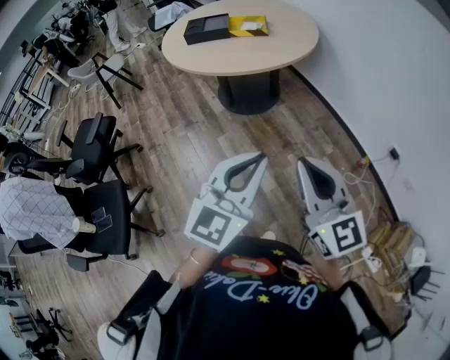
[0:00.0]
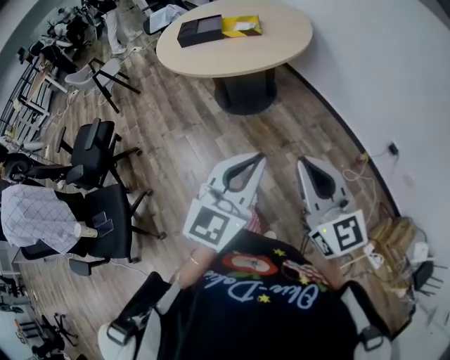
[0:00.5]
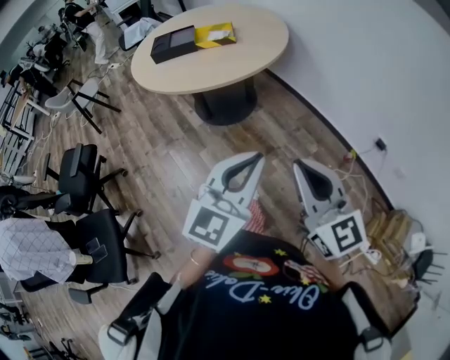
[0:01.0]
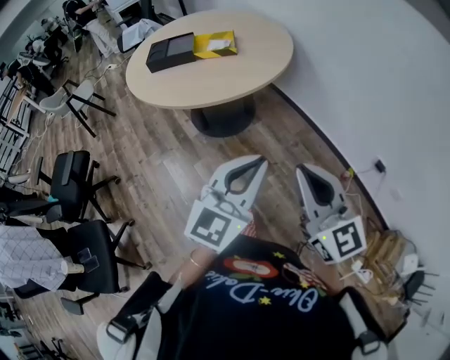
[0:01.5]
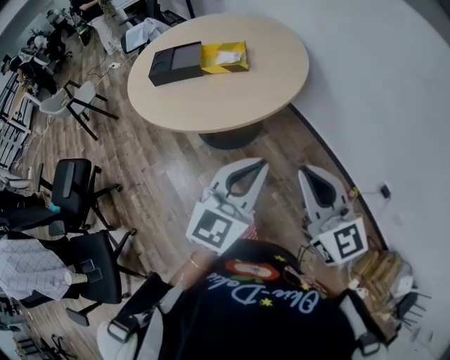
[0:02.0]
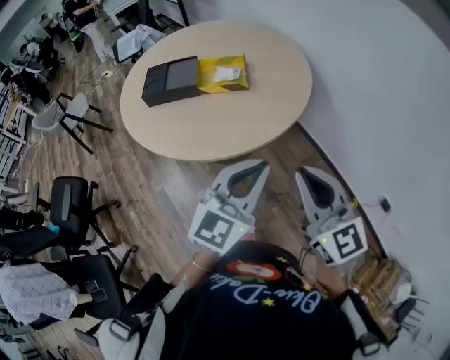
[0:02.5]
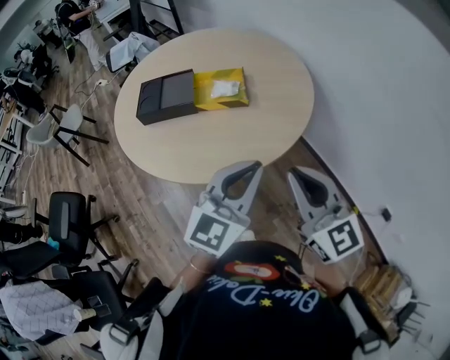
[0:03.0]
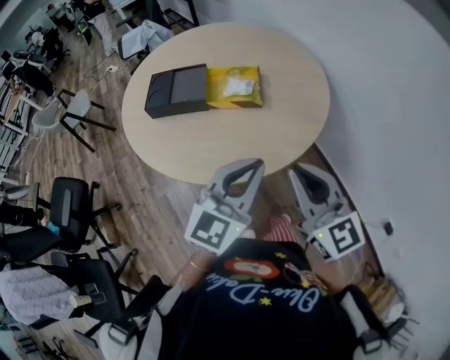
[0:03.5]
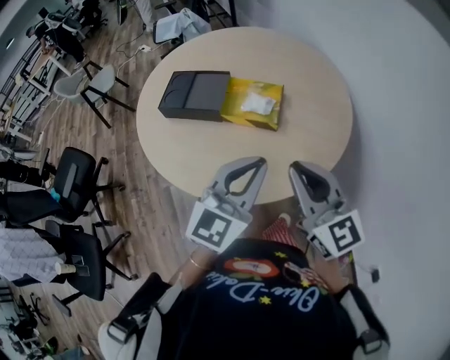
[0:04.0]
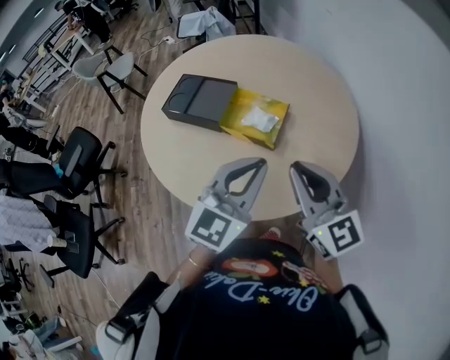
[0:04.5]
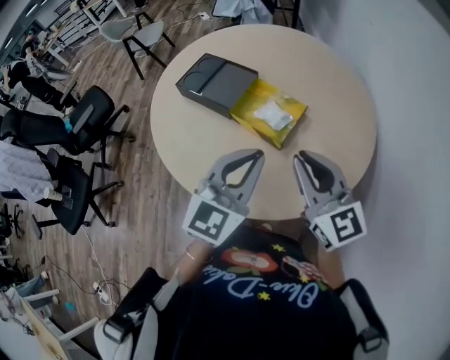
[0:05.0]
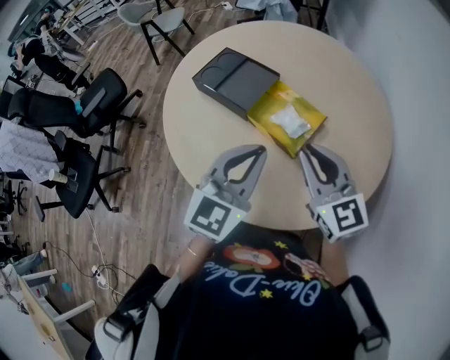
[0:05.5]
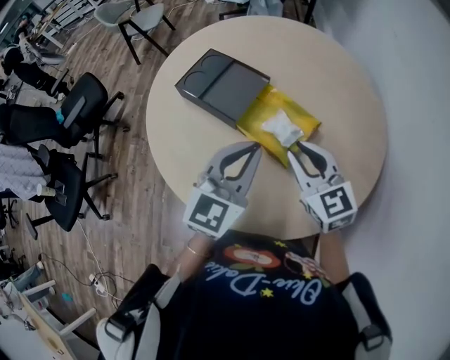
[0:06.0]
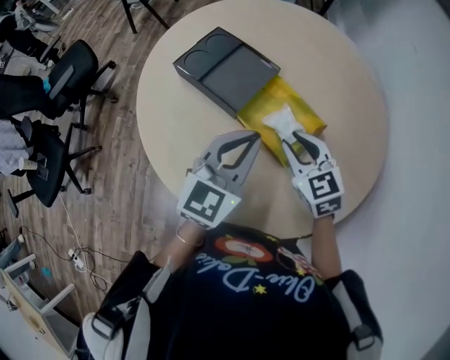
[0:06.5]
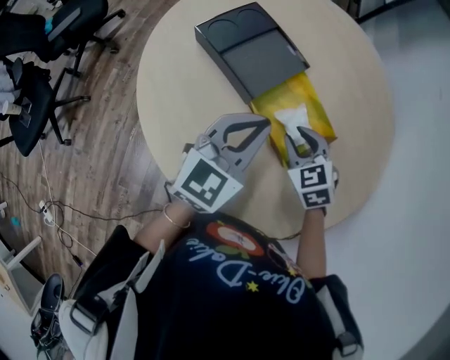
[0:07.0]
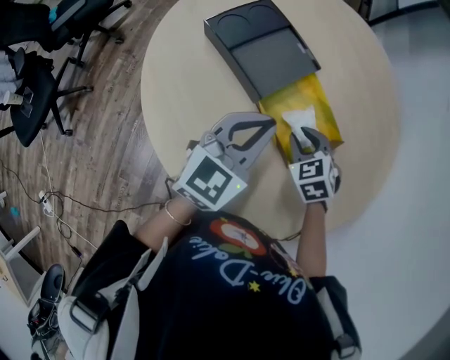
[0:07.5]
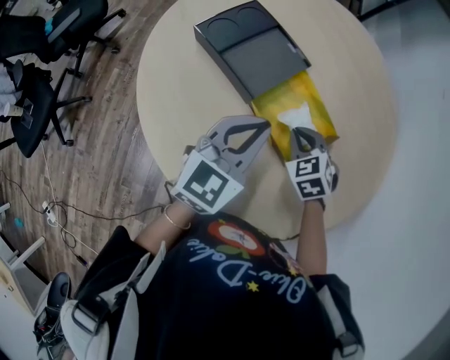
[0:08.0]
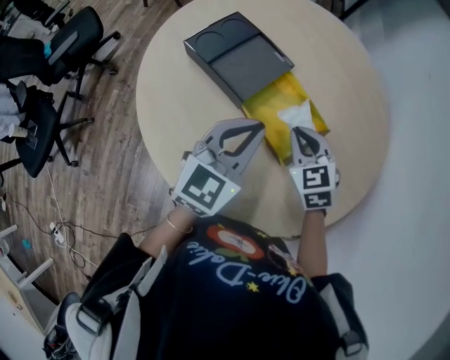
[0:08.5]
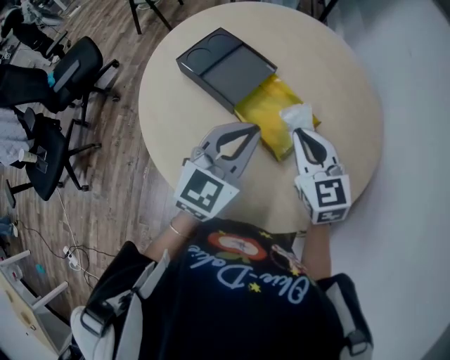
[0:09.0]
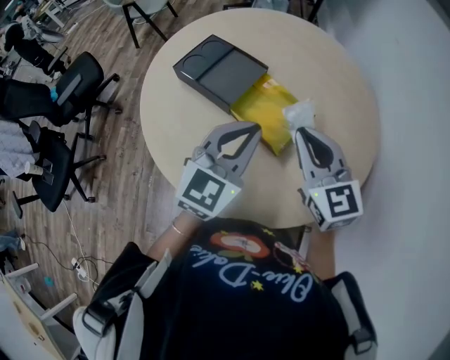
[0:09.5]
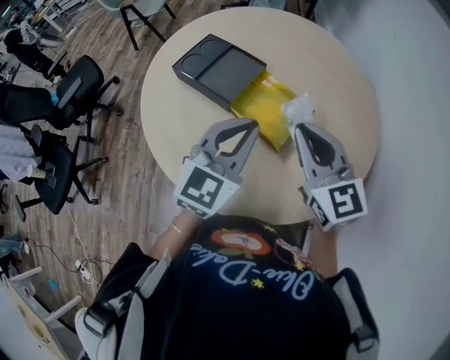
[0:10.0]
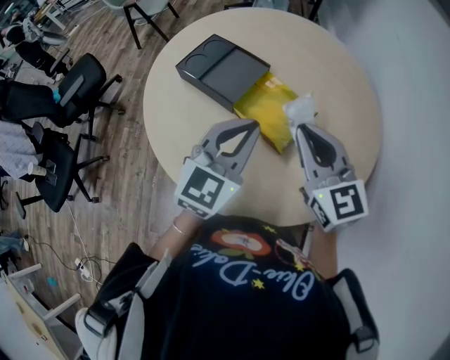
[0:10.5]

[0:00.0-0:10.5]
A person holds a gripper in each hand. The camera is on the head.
0:00.0 to 0:02.0: Both grippers move forward, roughly 25 cm.
0:02.0 to 0:04.0: The grippers both shift forward by approximately 30 cm.
0:04.0 to 0:06.5: The left gripper moves some 20 cm, and changes its angle by about 30 degrees. The right gripper ends up approximately 30 cm from where it was, and tilts its fingers roughly 40 degrees downward.
0:06.5 to 0:08.5: The right gripper goes downward and returns, roughly 10 cm each way.
0:08.5 to 0:10.5: The right gripper travels upward and backward by about 20 cm, and angles its fingers upward, by about 30 degrees, while the left gripper moves upward, about 5 cm.

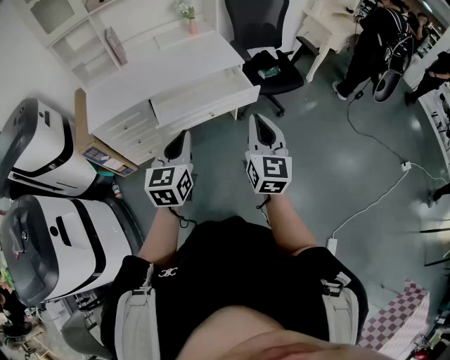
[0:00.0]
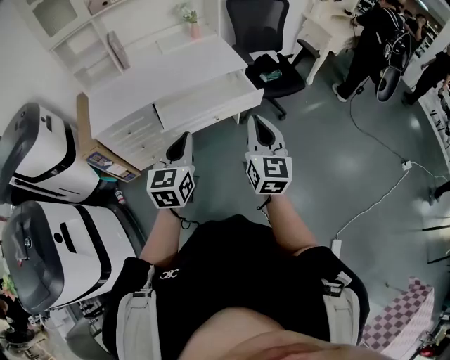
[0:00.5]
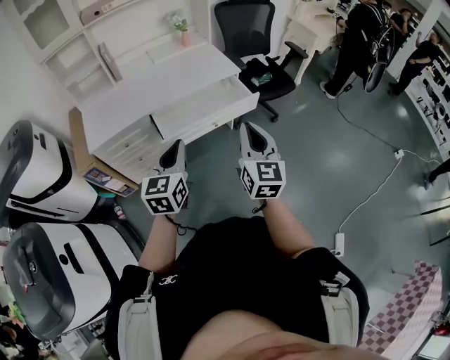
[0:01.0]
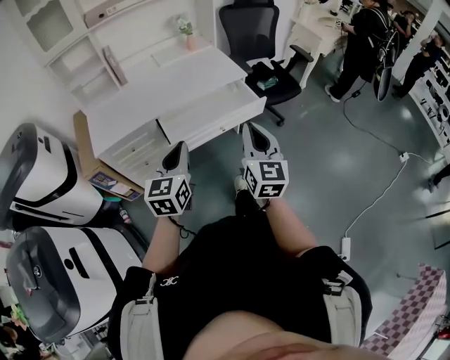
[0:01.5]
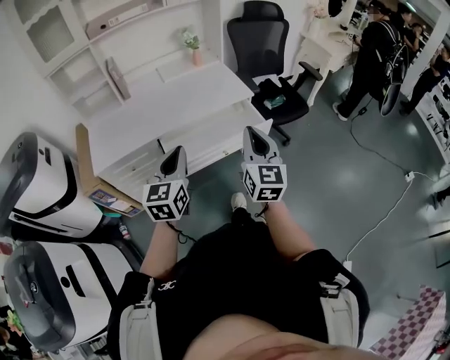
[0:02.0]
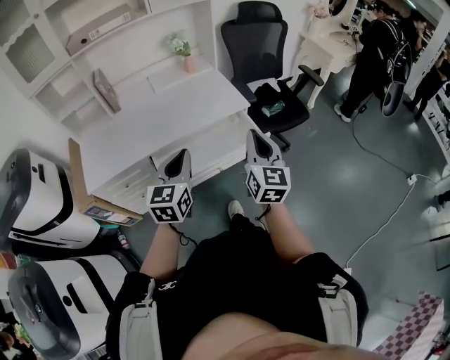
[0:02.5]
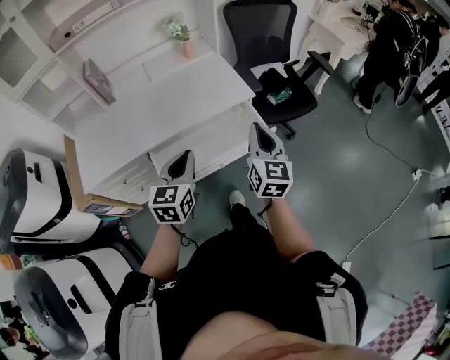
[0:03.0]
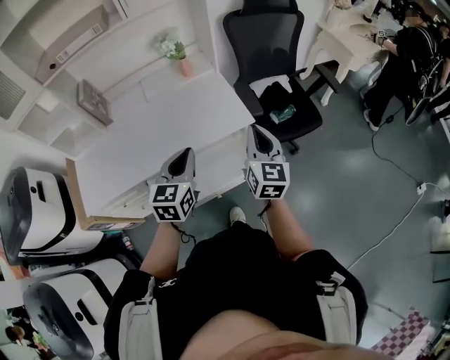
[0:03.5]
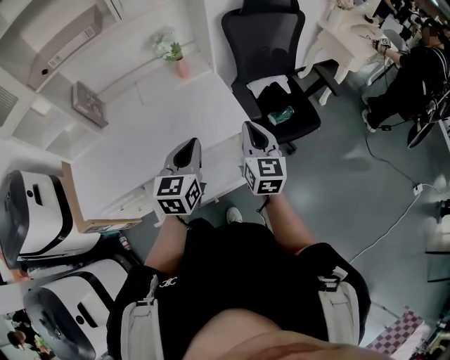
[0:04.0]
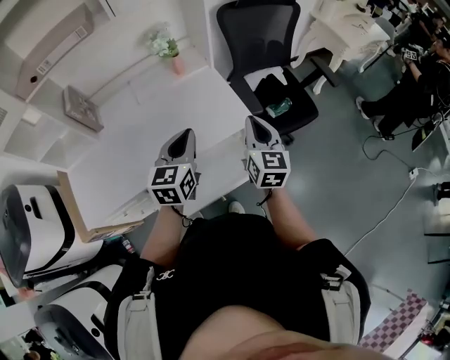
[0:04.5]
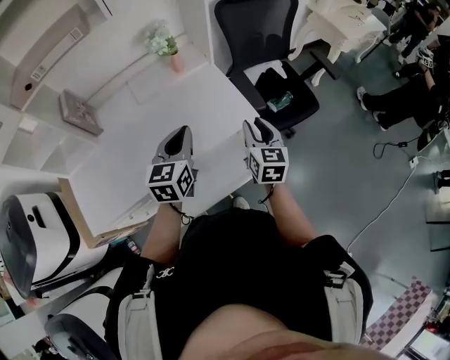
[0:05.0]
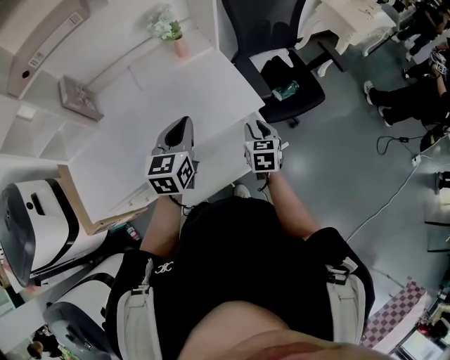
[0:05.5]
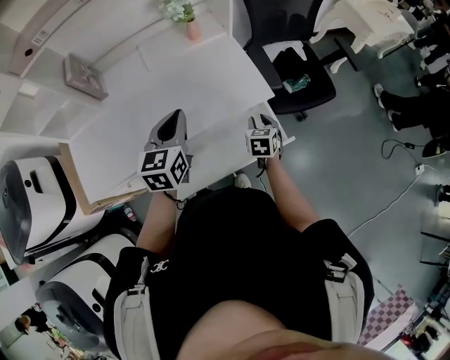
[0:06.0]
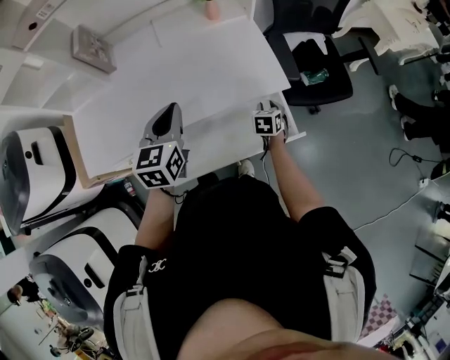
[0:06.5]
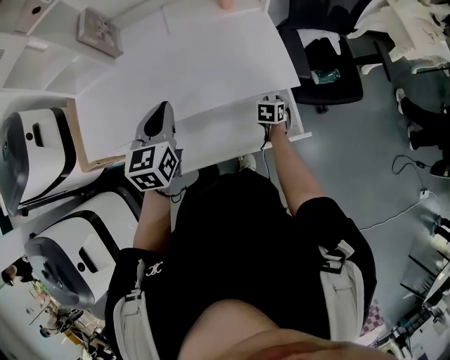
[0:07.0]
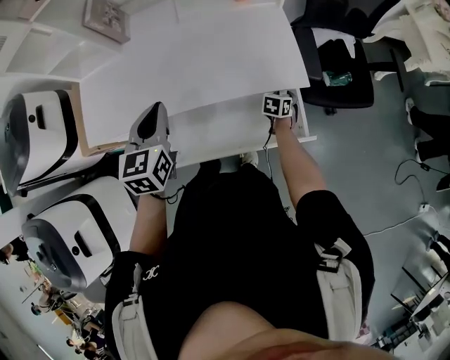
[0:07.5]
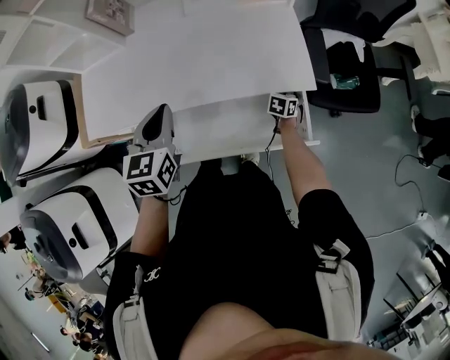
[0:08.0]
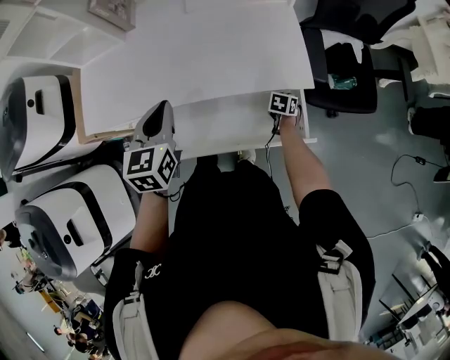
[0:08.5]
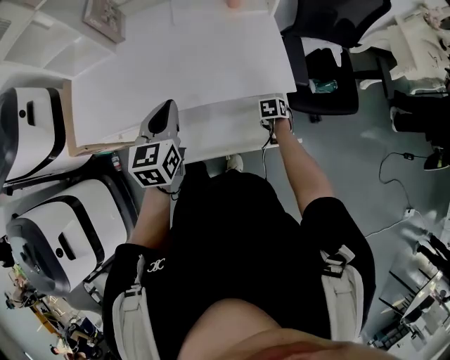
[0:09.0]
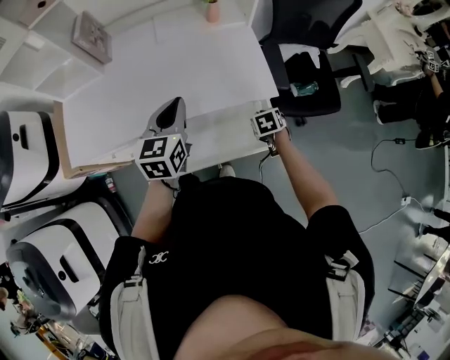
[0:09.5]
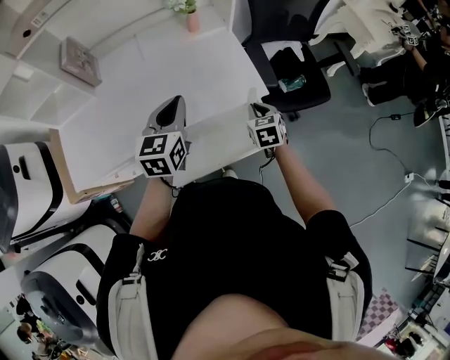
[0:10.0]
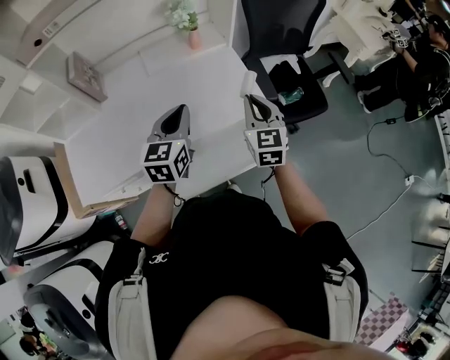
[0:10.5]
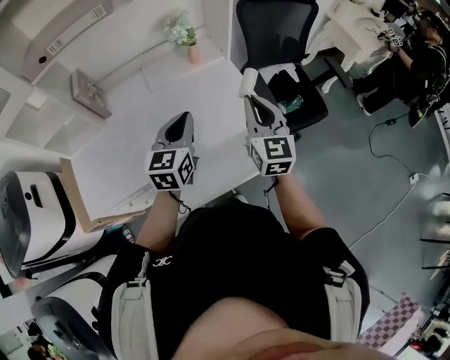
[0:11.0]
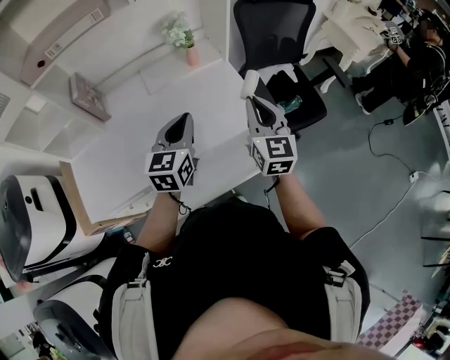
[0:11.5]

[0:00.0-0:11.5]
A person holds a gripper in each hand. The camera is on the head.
0:00.0 to 0:02.0: The grippers both shift forward and to the left by approximately 15 cm.
0:02.0 to 0:04.0: The two grippers go roughly 35 cm forward.
0:04.0 to 0:06.0: The left gripper is displaced to the left by some 10 cm; the right gripper goes approximately 25 cm downward, angles its fingers downward, by roughly 40 degrees, and opens.
0:06.0 to 0:07.5: The right gripper shifts roughly 20 cm downward and forward. The left gripper travels to the left by some 10 cm, and changes its angle by some 20 degrees.
0:07.5 to 0:09.5: The left gripper goes about 10 cm to the right. The right gripper heads upward and backward, covering about 10 cm, and swivels about 30 degrees.
0:09.5 to 0:11.5: The left gripper shifts approximately 5 cm upward, while the right gripper goes approximately 35 cm upward, and angles its fingers upward, by roughly 60 degrees.

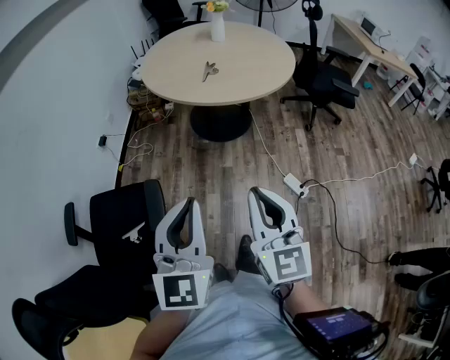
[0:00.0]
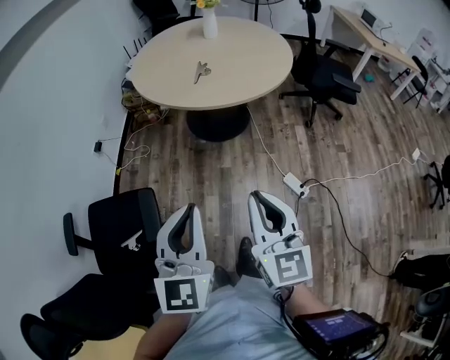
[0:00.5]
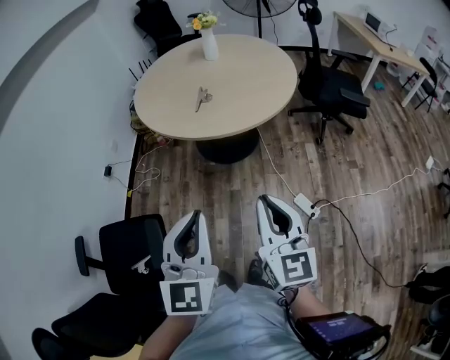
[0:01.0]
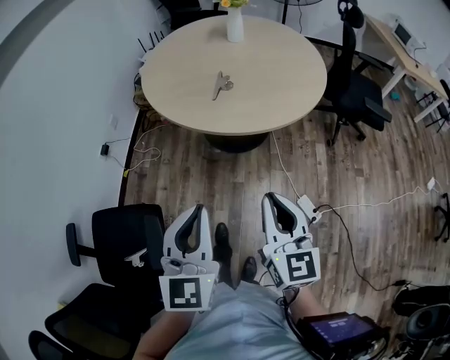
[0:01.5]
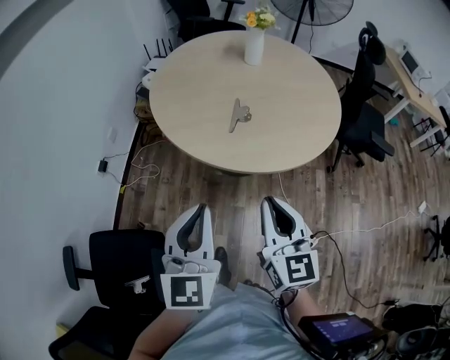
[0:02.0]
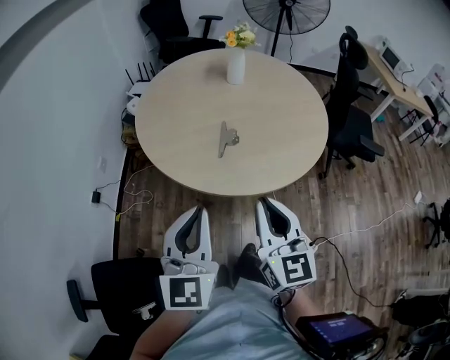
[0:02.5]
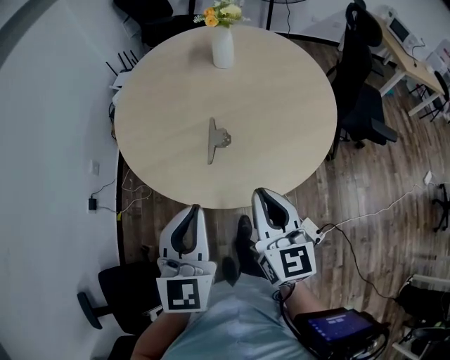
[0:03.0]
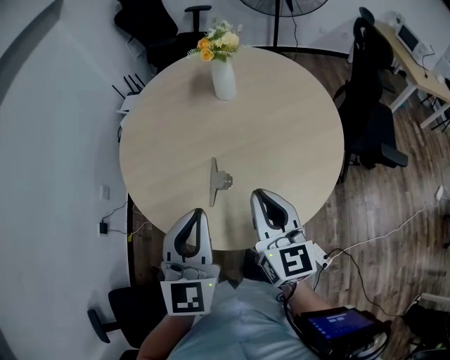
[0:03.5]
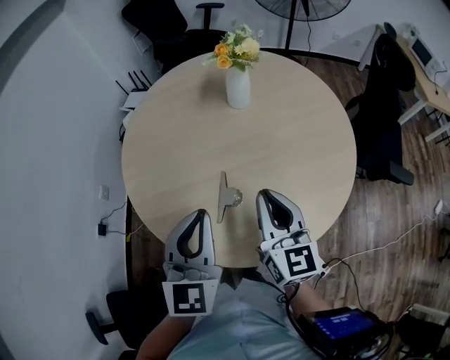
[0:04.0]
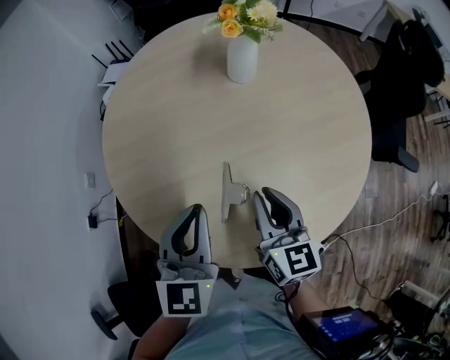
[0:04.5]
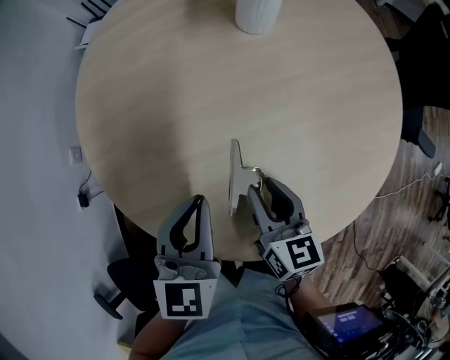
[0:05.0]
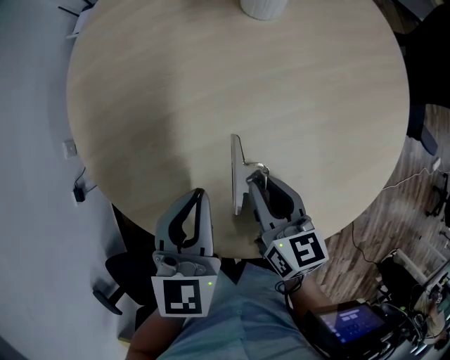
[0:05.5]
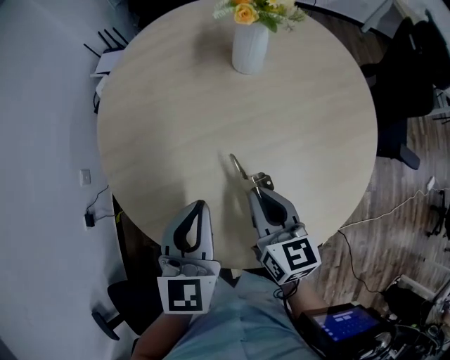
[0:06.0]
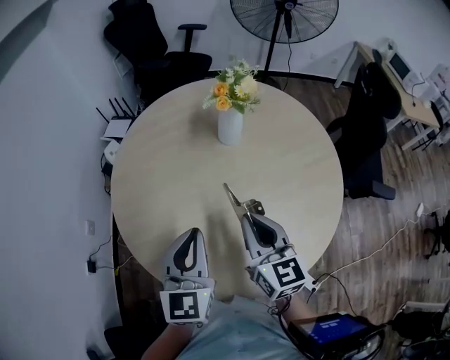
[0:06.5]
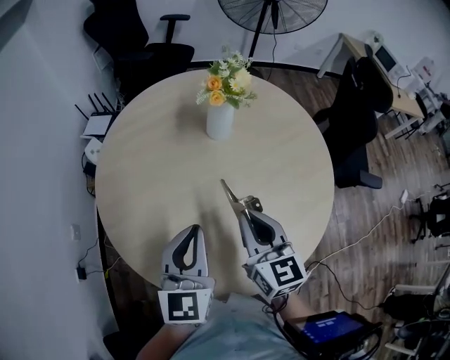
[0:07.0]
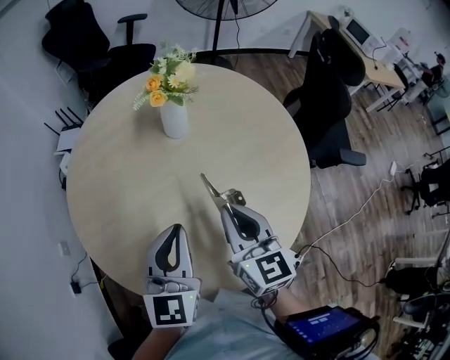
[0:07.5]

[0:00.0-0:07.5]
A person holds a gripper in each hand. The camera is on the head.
0:00.0 to 0:02.0: The grippers both shift forward by about 40 cm.
0:02.0 to 0:04.0: The two grippers go approximately 40 cm forward.
0:04.0 to 0:05.5: The left gripper heads downward and forward, covering about 25 cm, and swivels some 30 degrees. The right gripper is displaced downward by some 25 cm, and changes its angle by some 30 degrees.
0:05.5 to 0:07.5: The right gripper goes about 20 cm upward, and swivels about 30 degrees; the left gripper goes roughly 20 cm upward and to the right, and rotates roughly 20 degrees.
